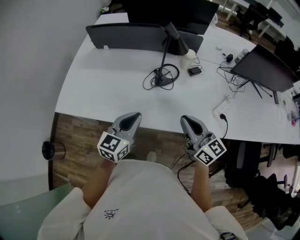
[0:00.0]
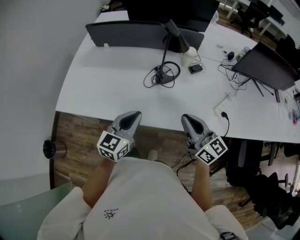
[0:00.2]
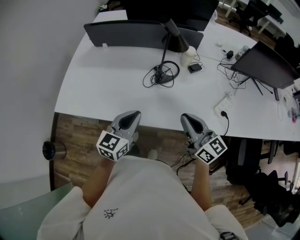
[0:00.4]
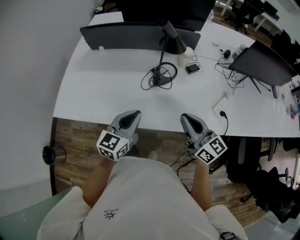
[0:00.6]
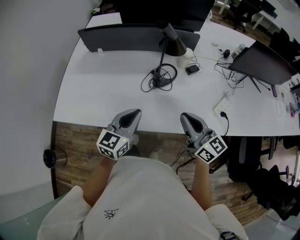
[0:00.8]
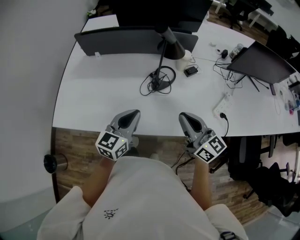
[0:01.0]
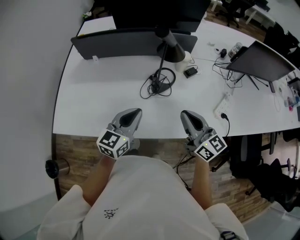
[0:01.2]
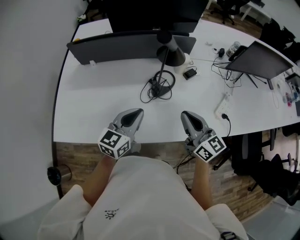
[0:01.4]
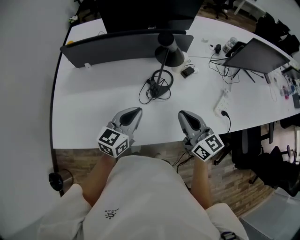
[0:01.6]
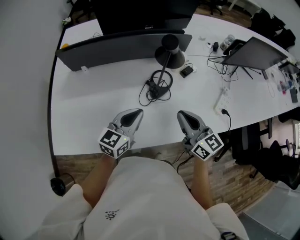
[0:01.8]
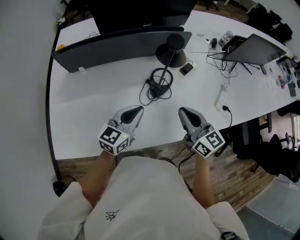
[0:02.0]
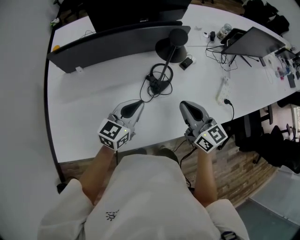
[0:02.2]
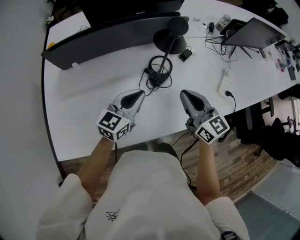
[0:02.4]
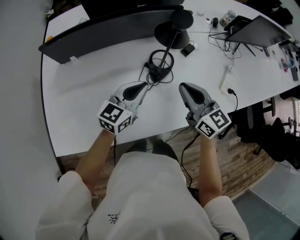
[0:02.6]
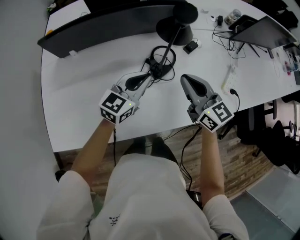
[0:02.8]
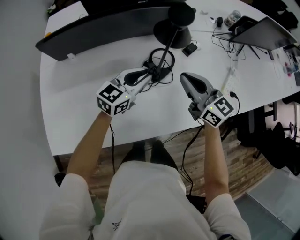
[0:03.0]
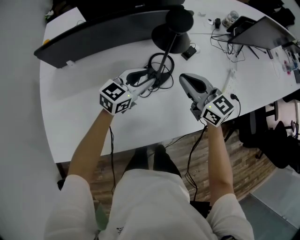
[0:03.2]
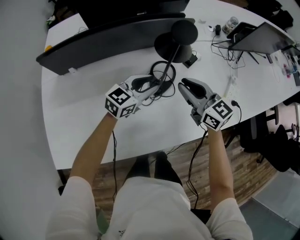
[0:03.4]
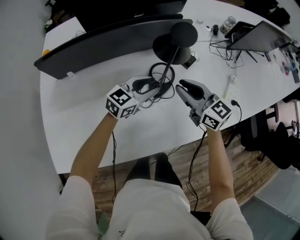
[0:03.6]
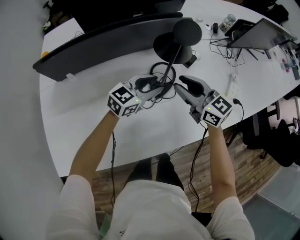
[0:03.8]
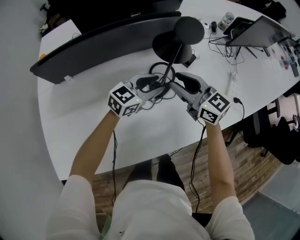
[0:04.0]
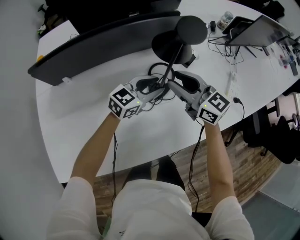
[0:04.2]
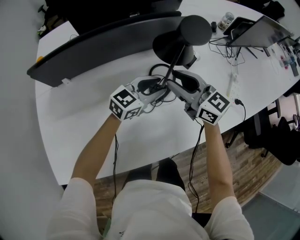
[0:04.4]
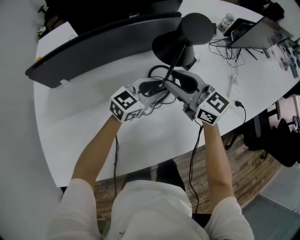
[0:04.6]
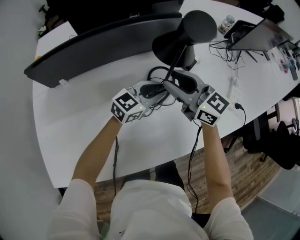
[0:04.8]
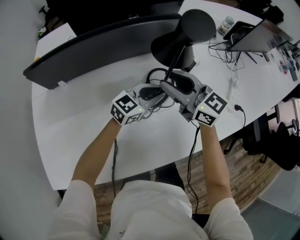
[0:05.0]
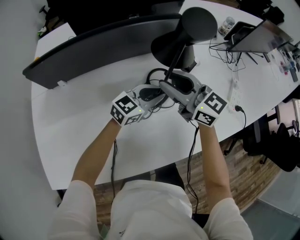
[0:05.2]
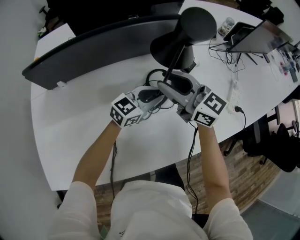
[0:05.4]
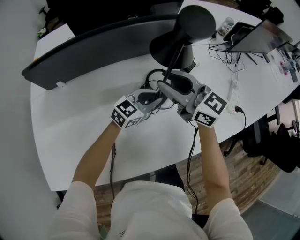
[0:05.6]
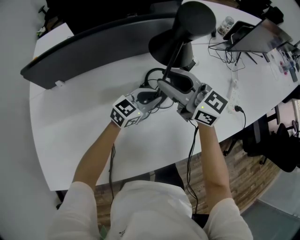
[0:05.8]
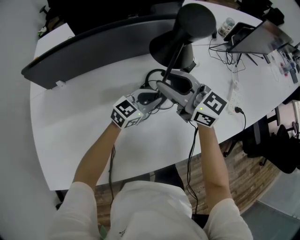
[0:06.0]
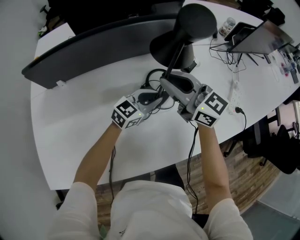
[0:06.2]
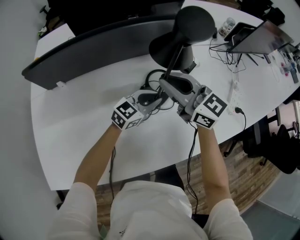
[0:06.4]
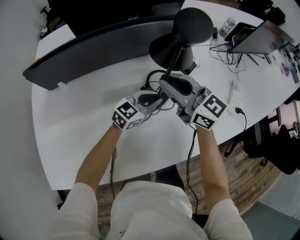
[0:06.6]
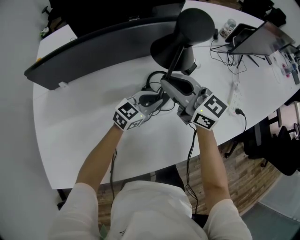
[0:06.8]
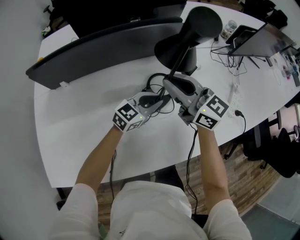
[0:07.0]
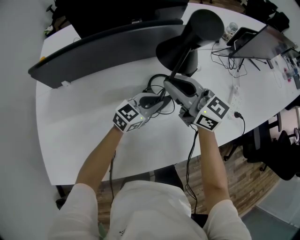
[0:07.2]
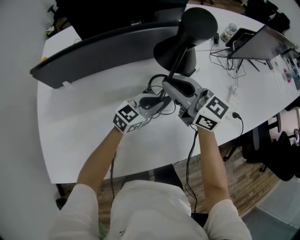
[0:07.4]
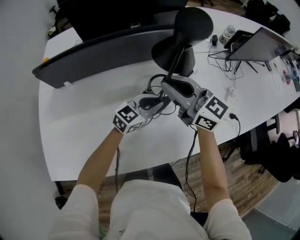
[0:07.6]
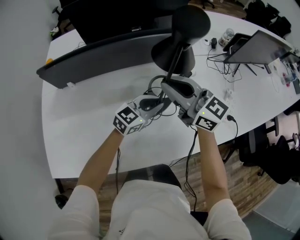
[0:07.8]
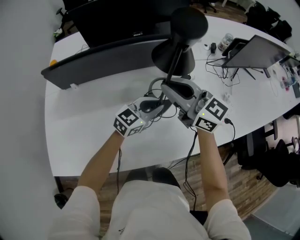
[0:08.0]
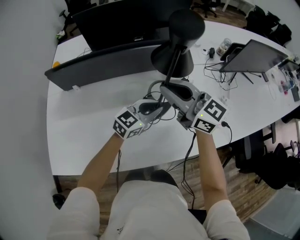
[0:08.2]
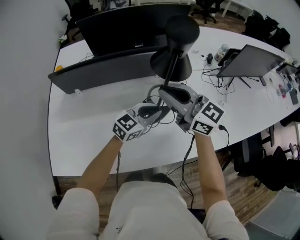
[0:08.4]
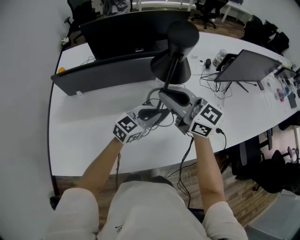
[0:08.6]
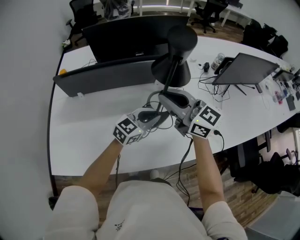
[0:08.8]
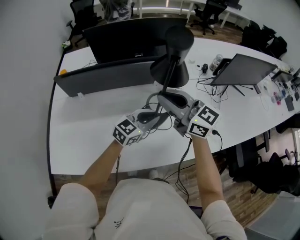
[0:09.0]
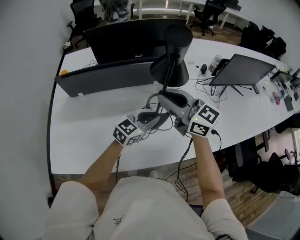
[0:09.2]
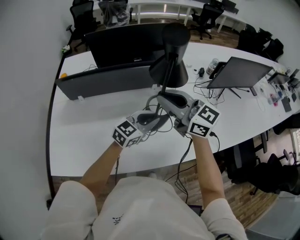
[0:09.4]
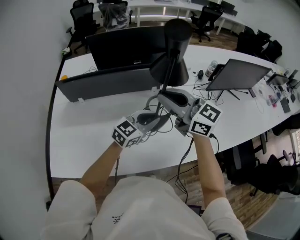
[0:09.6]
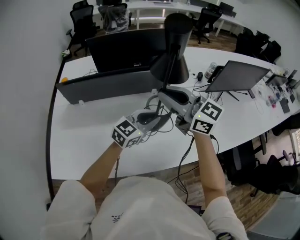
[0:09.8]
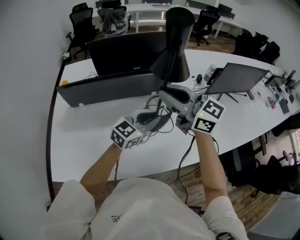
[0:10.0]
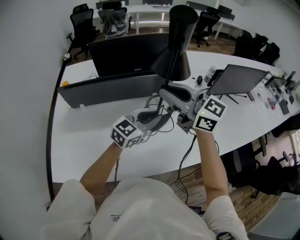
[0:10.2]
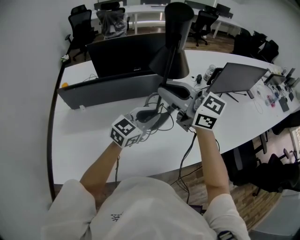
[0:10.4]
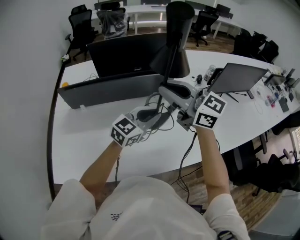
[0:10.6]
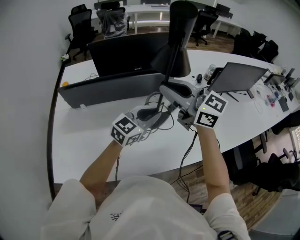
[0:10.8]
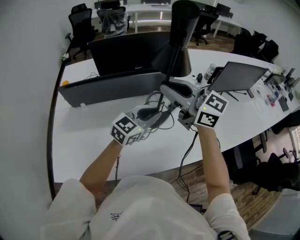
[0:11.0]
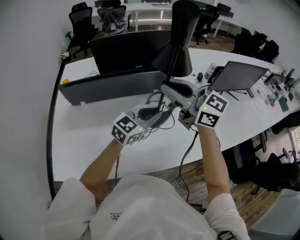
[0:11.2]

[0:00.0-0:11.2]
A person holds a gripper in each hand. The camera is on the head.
0:00.0 to 0:01.6: The right gripper moves forward and to the left, about 15 cm. Meanwhile the left gripper moves forward, approximately 15 cm.
0:01.6 to 0:03.2: Both grippers travel together forward and downward, roughly 15 cm. The left gripper rotates some 30 degrees, and opens up.
0:03.2 to 0:04.8: The right gripper travels to the left by about 5 cm, and opens, while the left gripper heads downward, covering roughly 5 cm.
0:04.8 to 0:06.4: The right gripper closes its fingers, while the left gripper moves downward, some 5 cm.
0:06.4 to 0:08.0: The two grippers go approximately 10 cm upward.
0:08.0 to 0:09.6: The two grippers go approximately 15 cm upward and backward.
0:09.6 to 0:11.2: The two grippers go roughly 5 cm upward.

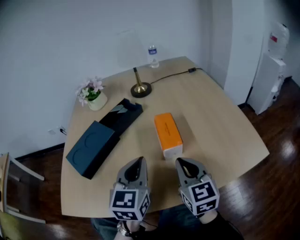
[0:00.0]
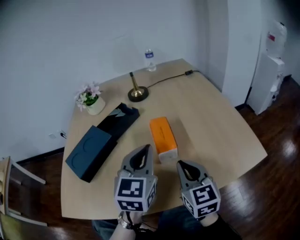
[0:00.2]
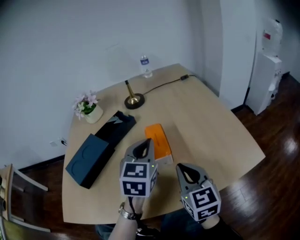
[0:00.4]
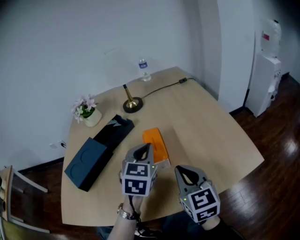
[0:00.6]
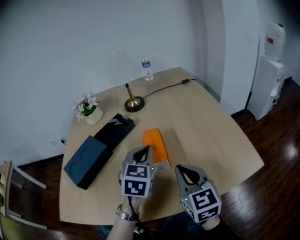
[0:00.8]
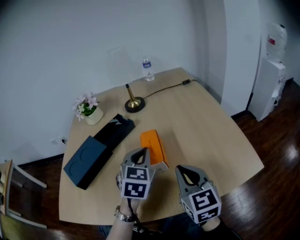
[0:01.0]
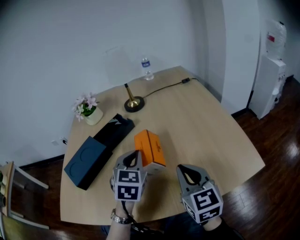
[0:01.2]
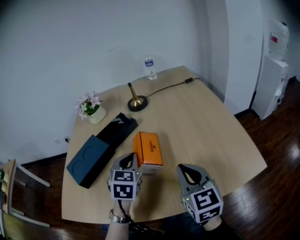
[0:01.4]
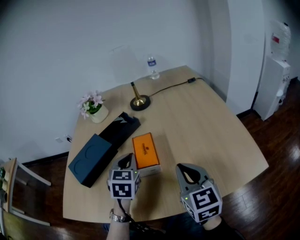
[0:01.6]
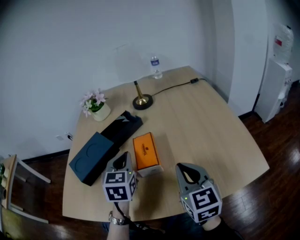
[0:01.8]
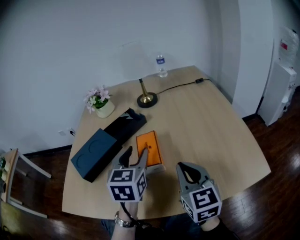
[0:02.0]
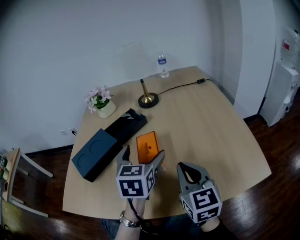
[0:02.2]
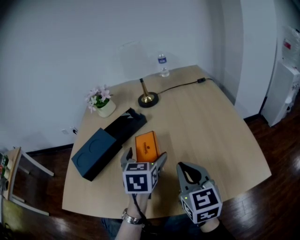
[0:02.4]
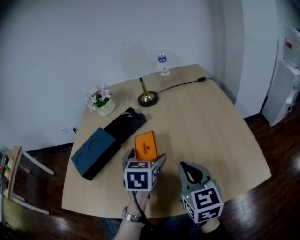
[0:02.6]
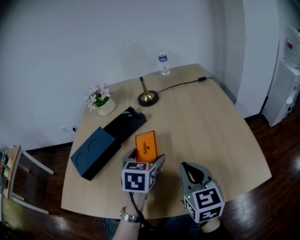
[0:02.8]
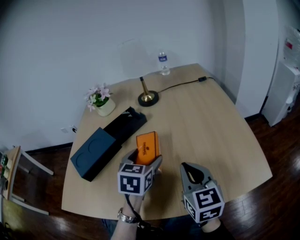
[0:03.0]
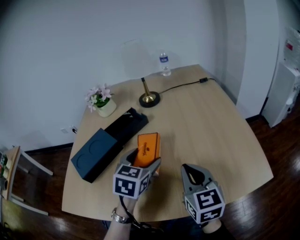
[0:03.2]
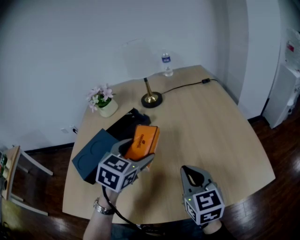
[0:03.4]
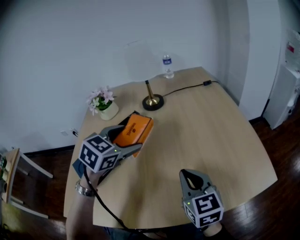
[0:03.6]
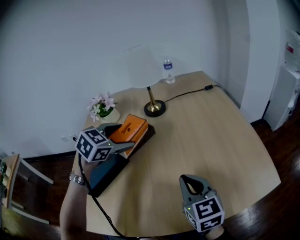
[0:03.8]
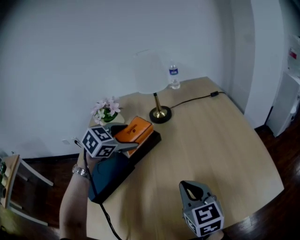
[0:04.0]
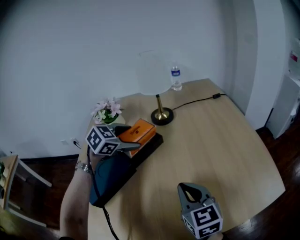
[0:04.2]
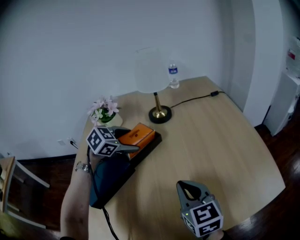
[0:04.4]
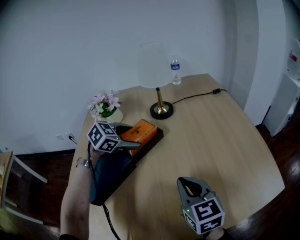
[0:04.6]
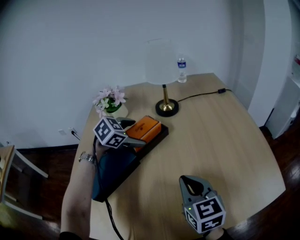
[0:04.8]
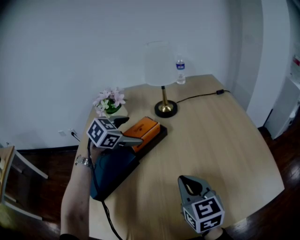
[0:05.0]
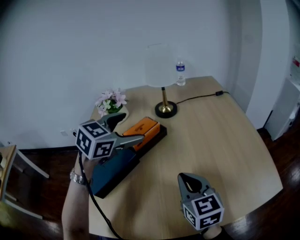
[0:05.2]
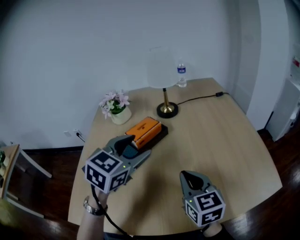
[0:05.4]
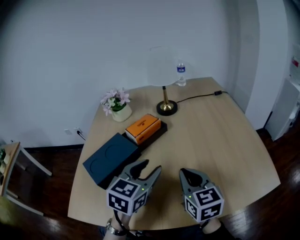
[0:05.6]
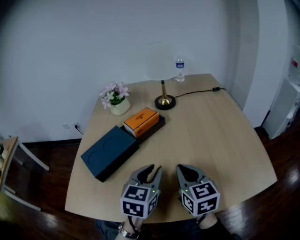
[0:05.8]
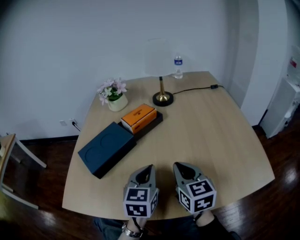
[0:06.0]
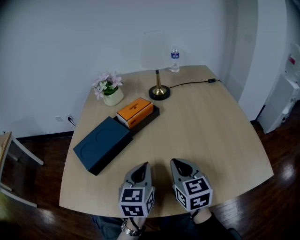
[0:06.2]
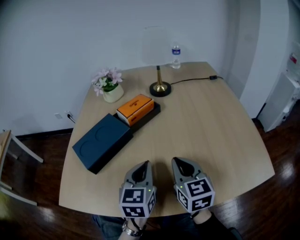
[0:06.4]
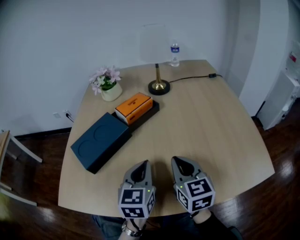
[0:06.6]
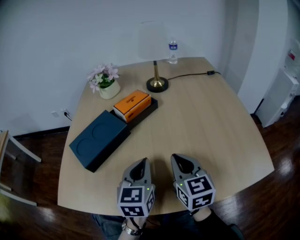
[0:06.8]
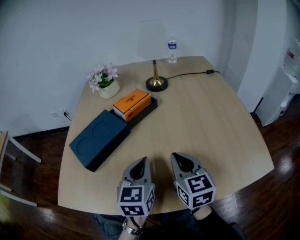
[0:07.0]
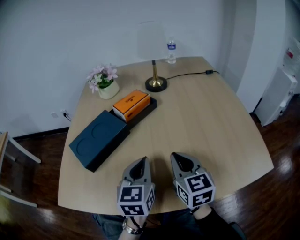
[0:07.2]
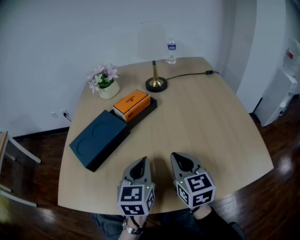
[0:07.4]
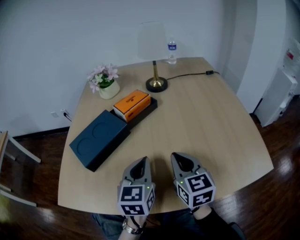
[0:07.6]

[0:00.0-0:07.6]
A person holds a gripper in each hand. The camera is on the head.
0:00.0 to 0:01.6: The left gripper travels forward by approximately 10 cm, reaches about 10 cm to the right, then returns, and swivels about 20 degrees, while the right gripper changes place by about 5 cm.
0:01.6 to 0:03.0: The left gripper goes some 5 cm to the right, and opens its fingers.
0:03.0 to 0:04.6: The right gripper goes approximately 10 cm to the left. The left gripper shifts approximately 20 cm forward and to the left, and swivels approximately 50 degrees.
0:04.6 to 0:06.0: The left gripper goes approximately 25 cm backward, rotates roughly 50 degrees, and closes.
0:06.0 to 0:07.6: There are only small adjustments of the grippers.

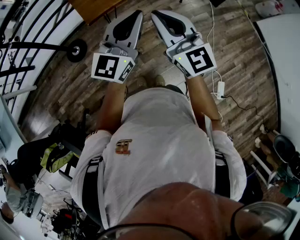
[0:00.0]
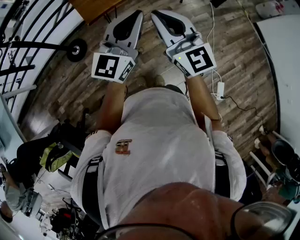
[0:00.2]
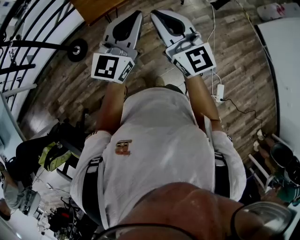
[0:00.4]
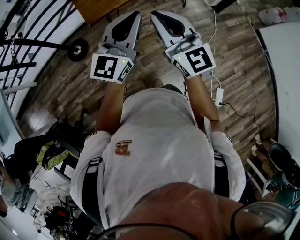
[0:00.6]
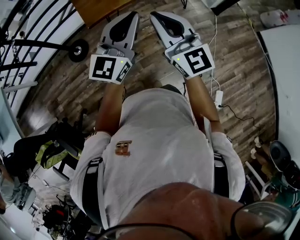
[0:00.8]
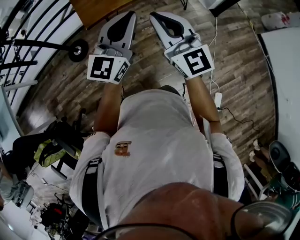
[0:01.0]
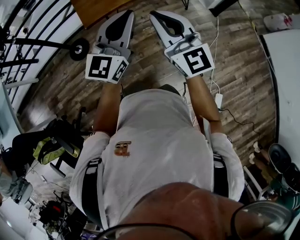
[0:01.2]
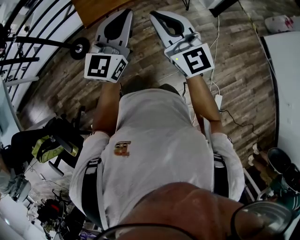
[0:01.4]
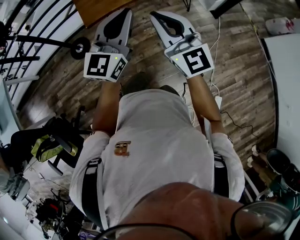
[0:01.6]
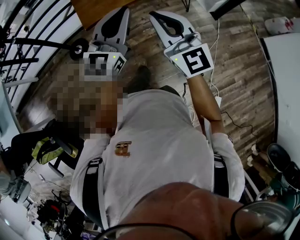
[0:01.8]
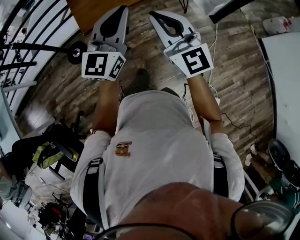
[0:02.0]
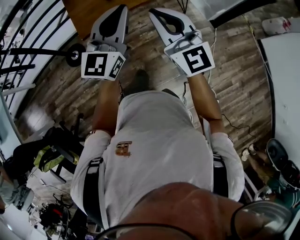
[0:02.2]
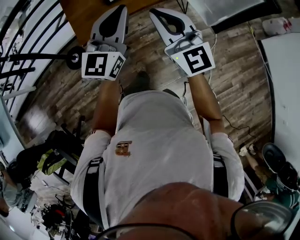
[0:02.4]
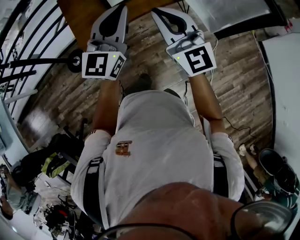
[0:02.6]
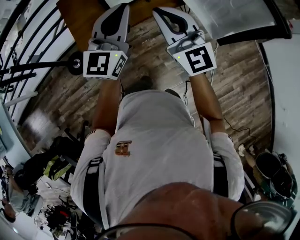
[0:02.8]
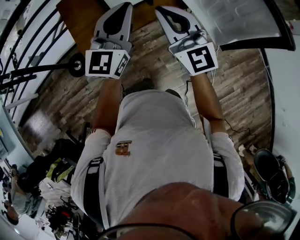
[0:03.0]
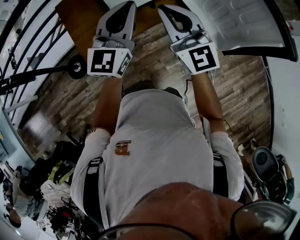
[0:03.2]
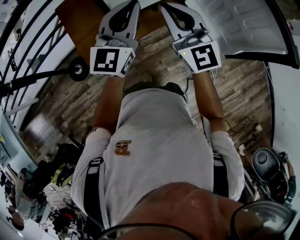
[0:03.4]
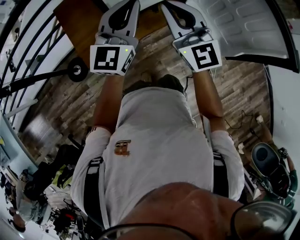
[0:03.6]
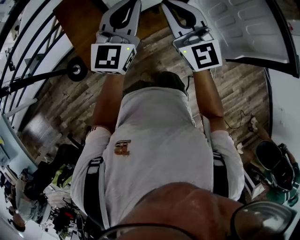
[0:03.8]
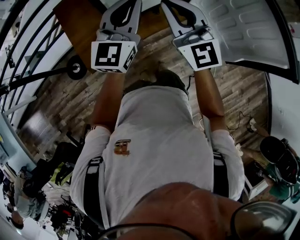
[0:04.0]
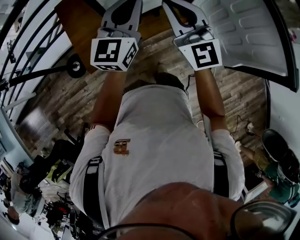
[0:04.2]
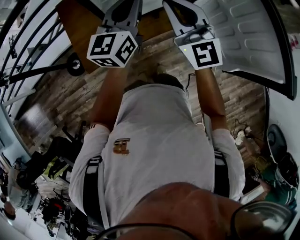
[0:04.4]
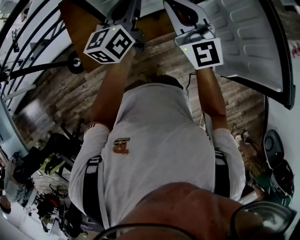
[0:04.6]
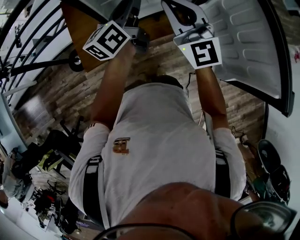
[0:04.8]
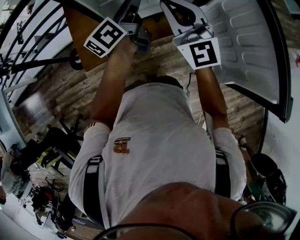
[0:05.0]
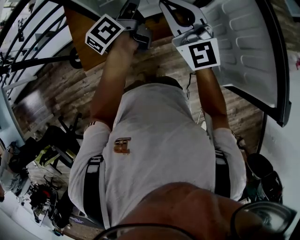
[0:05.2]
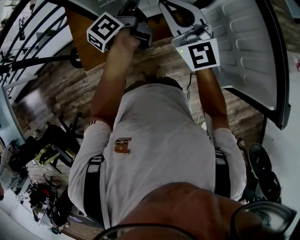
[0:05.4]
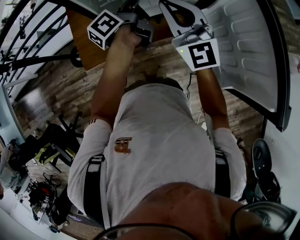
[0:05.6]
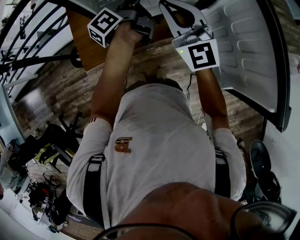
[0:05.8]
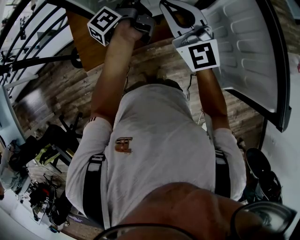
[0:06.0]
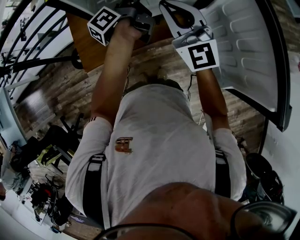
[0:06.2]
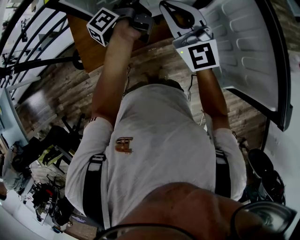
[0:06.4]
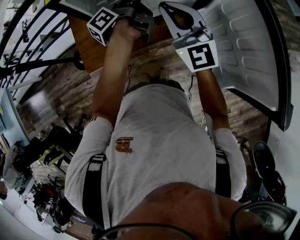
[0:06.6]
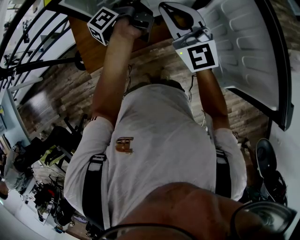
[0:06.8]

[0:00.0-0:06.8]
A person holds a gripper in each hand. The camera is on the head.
0:00.0 to 0:01.4: Both grippers travel together to the right, some 10 cm.
0:01.4 to 0:02.8: Both grippers move forward, some 25 cm.
0:02.8 to 0:04.0: Both grippers move forward, roughly 15 cm.
0:04.0 to 0:05.4: The right gripper moves to the right and forward, some 10 cm, while the left gripper shifts approximately 15 cm forward, downward and to the right, twists roughly 70 degrees counterclockwise, seen from behind, and opens.
0:05.4 to 0:06.8: There are only small adjustments of the grippers.
